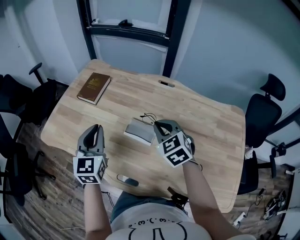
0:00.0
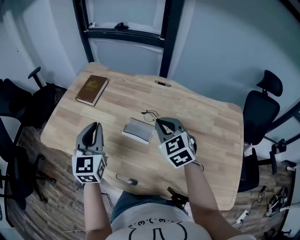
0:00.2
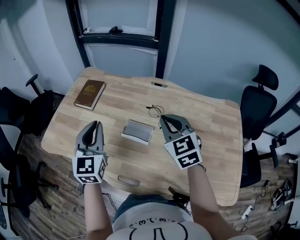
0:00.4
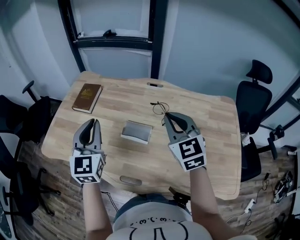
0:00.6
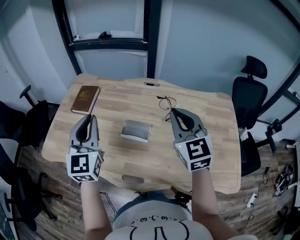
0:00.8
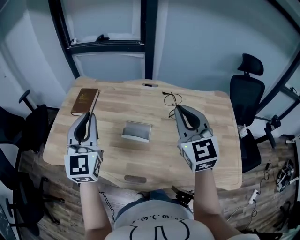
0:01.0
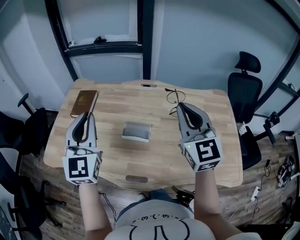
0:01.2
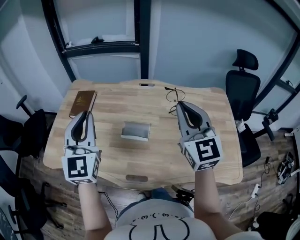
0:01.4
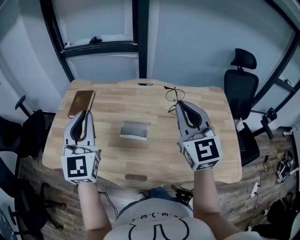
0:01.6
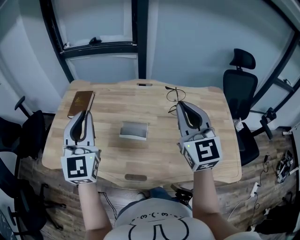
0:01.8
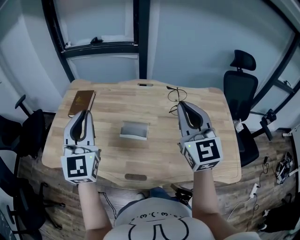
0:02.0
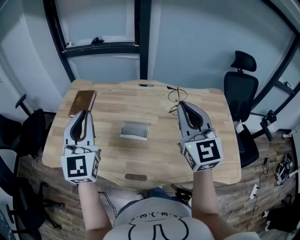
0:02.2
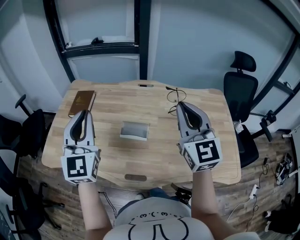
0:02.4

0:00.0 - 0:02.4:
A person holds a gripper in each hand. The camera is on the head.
0:00.0 - 0:01.2: The left gripper is displaced upward by approximately 15 cm, and turns by roughly 20 degrees. The right gripper moves upward and backward, roughly 20 cm, and points its fingers about 40 degrees further upward.
0:01.2 - 0:02.4: The grippers make only small movements.

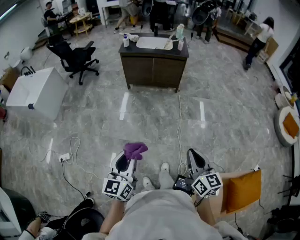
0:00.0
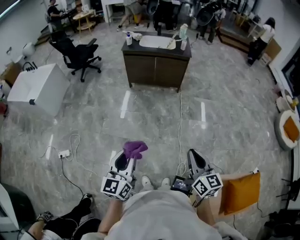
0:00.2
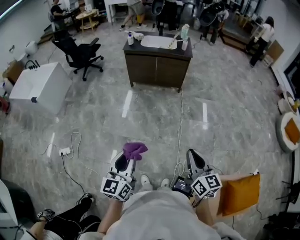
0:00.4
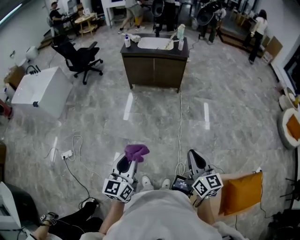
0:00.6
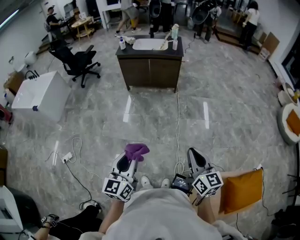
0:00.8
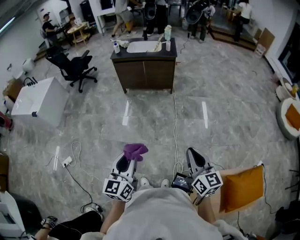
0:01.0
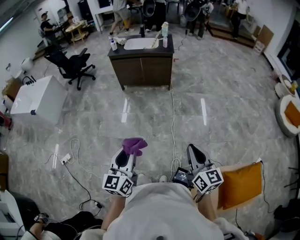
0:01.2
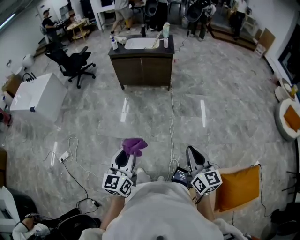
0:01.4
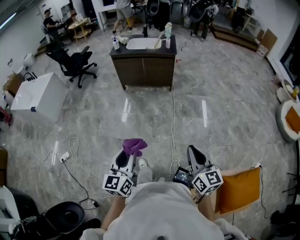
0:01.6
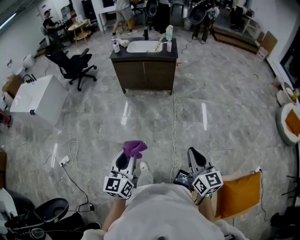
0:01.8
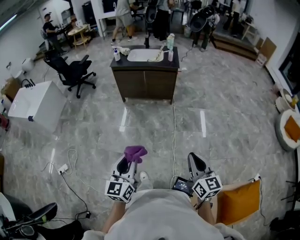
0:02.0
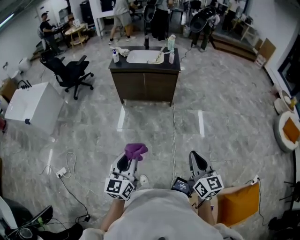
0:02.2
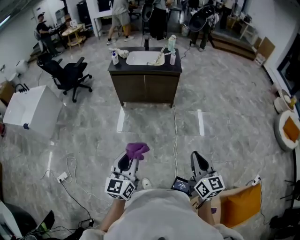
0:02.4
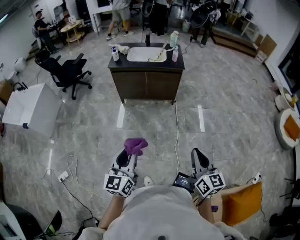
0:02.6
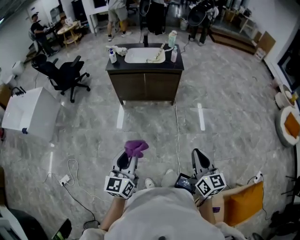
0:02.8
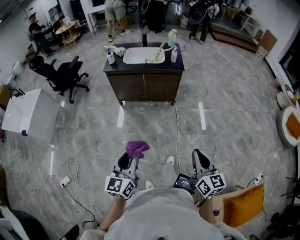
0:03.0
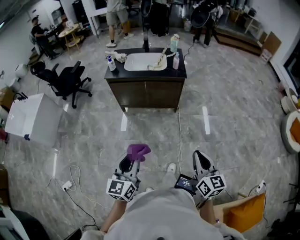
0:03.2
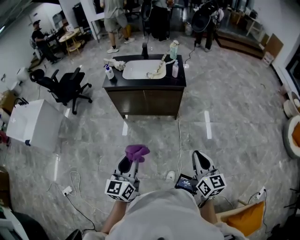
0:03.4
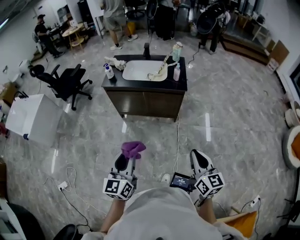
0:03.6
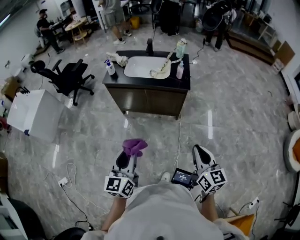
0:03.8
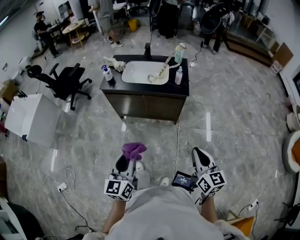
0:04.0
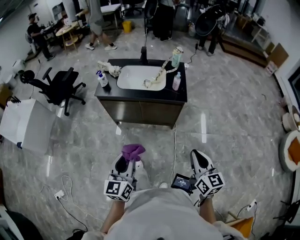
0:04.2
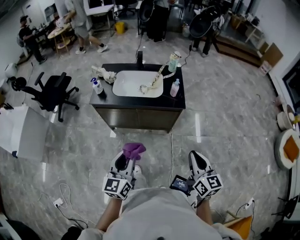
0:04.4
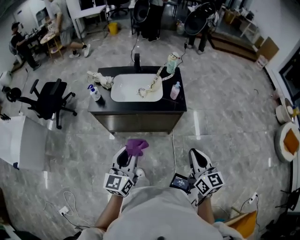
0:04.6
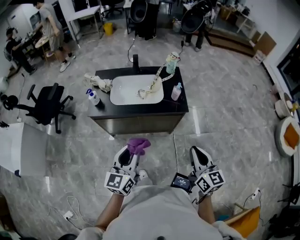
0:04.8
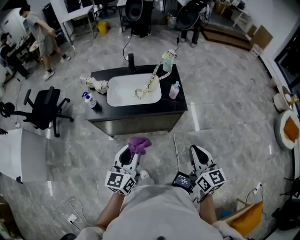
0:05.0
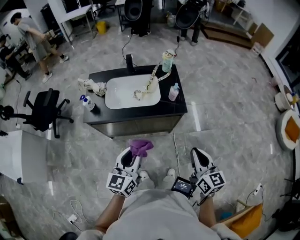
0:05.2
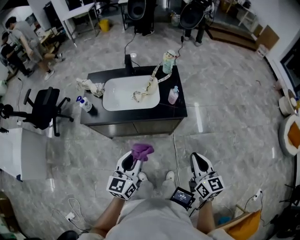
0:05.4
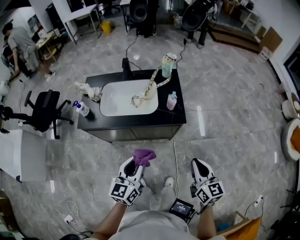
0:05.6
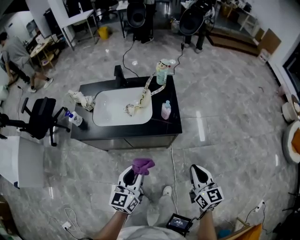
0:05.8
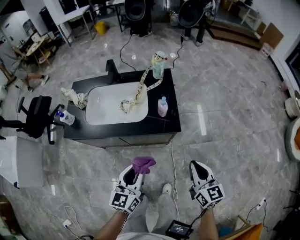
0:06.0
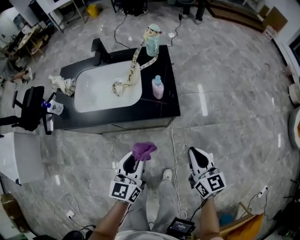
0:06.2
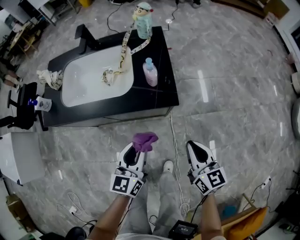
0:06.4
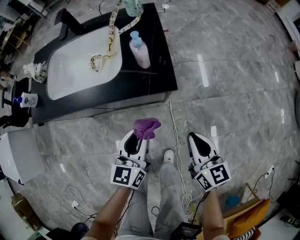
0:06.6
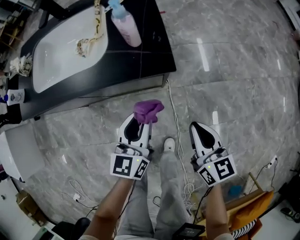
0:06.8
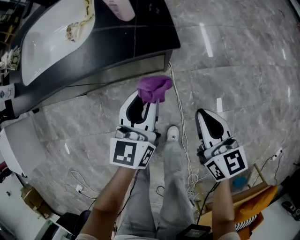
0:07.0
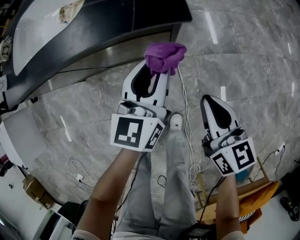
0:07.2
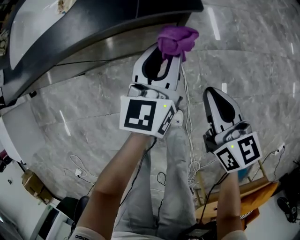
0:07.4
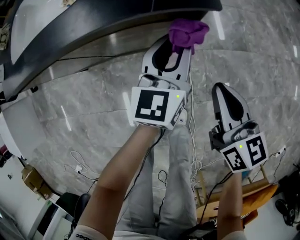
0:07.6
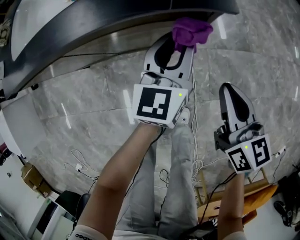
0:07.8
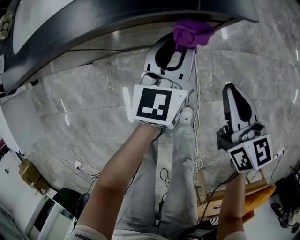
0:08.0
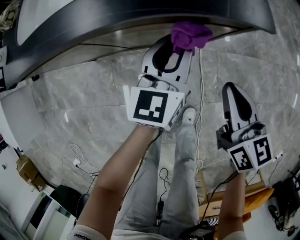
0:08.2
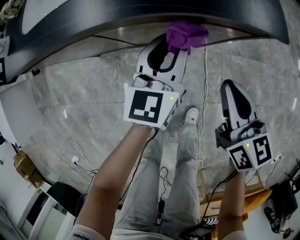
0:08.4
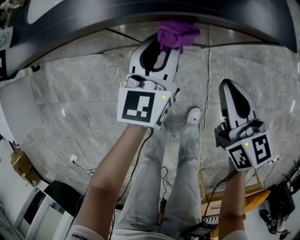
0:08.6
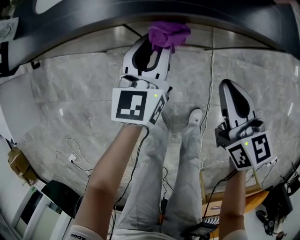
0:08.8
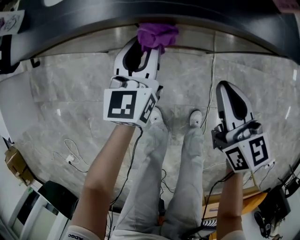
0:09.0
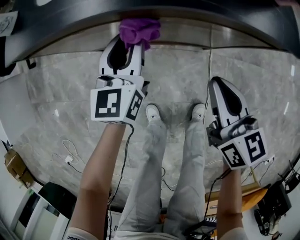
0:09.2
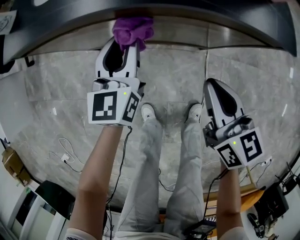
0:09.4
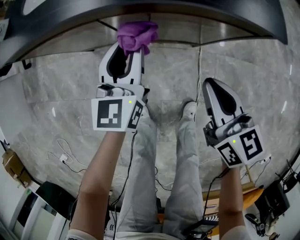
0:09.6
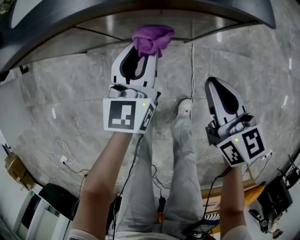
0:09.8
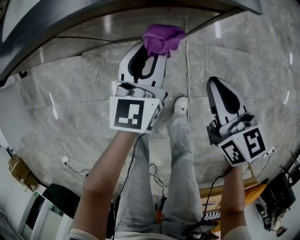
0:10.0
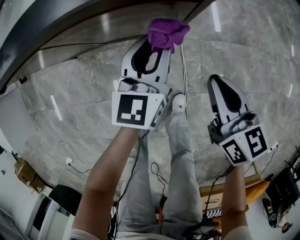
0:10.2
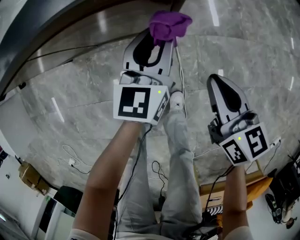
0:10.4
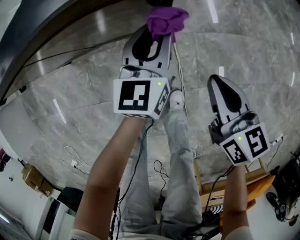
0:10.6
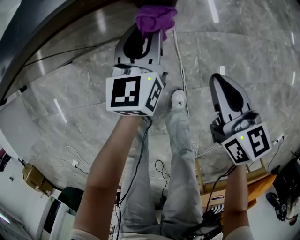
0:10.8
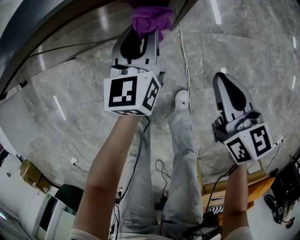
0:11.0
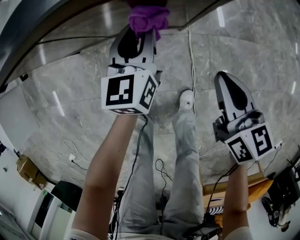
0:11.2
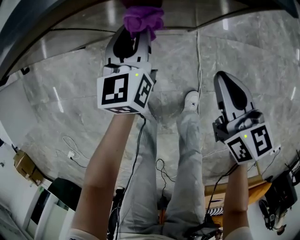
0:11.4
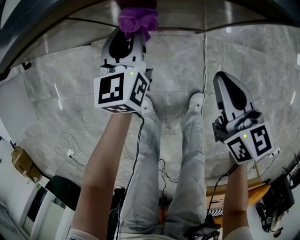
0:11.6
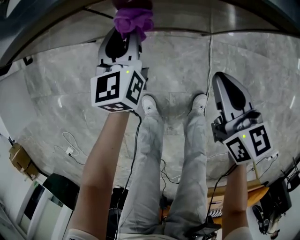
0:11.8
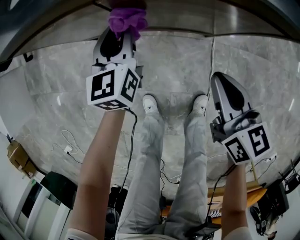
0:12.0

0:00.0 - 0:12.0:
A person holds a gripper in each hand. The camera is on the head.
0:00.0 - 0:01.6: The grippers both shift to the right by about 15 cm.
0:01.6 - 0:03.0: Both grippers move forward, about 30 cm.
0:03.0 - 0:04.4: Both grippers move forward, about 40 cm.
0:04.4 - 0:06.0: The left gripper shifts some 30 cm forward, downward and to the right. The right gripper moves forward and downward, about 25 cm.
0:06.0 - 0:07.6: The left gripper goes roughly 40 cm downward, to the right and forward. The right gripper is displaced downward by some 30 cm.
0:07.6 - 0:09.0: The grippers both shift to the left by about 25 cm.
0:09.0 - 0:10.4: Both grippers travel together to the right, approximately 30 cm.
0:10.4 - 0:12.0: The left gripper shifts roughly 35 cm to the left, and changes its angle by some 20 degrees, while the right gripper goes about 20 cm to the left.

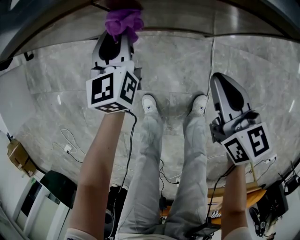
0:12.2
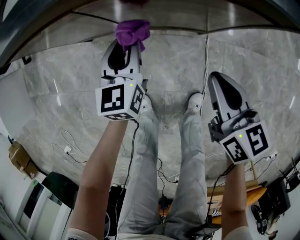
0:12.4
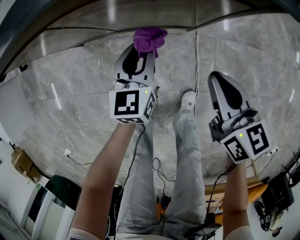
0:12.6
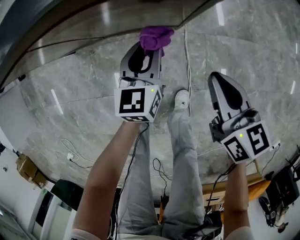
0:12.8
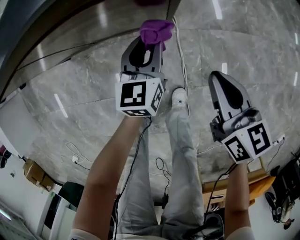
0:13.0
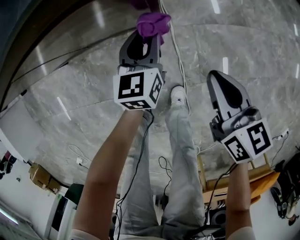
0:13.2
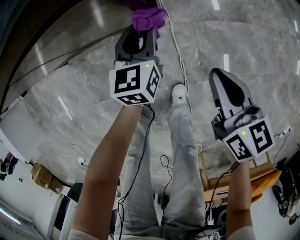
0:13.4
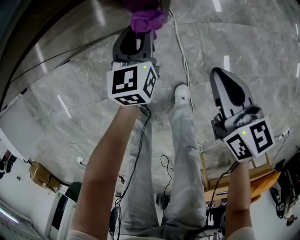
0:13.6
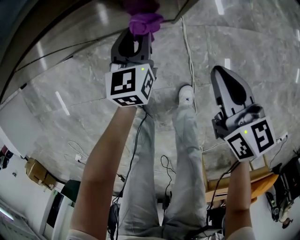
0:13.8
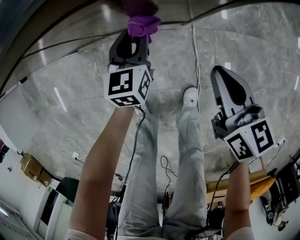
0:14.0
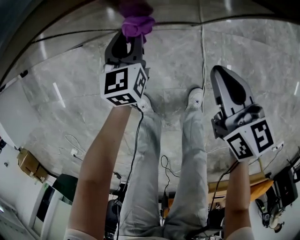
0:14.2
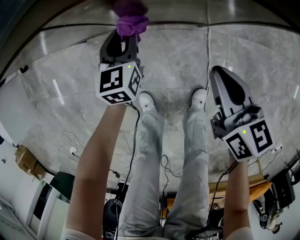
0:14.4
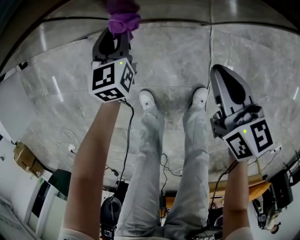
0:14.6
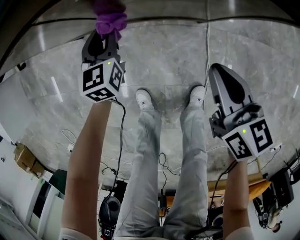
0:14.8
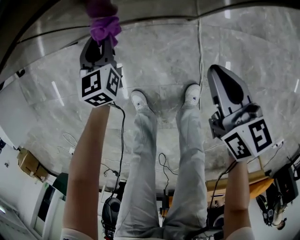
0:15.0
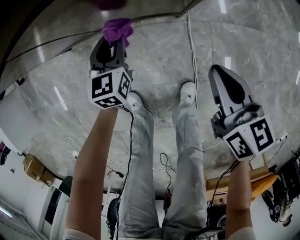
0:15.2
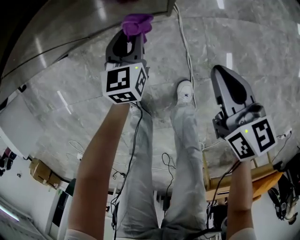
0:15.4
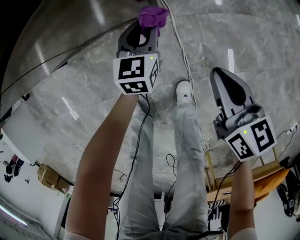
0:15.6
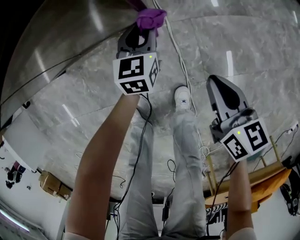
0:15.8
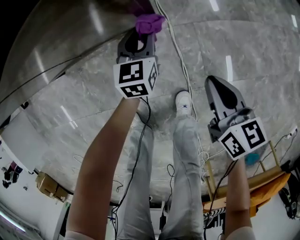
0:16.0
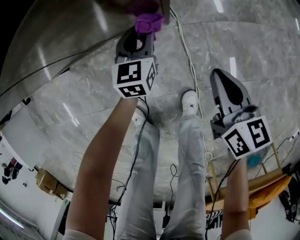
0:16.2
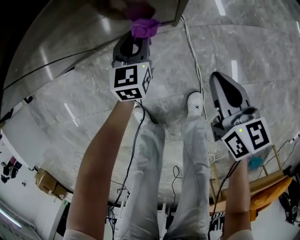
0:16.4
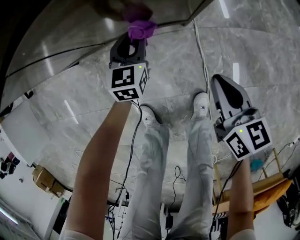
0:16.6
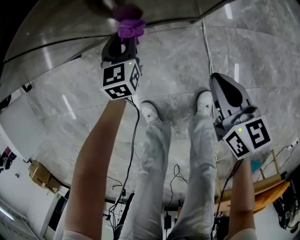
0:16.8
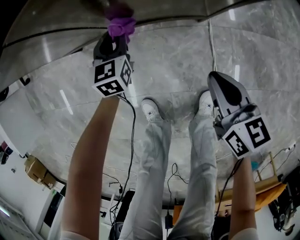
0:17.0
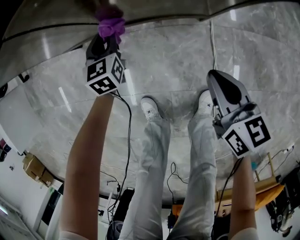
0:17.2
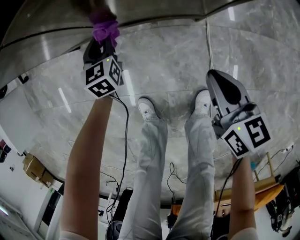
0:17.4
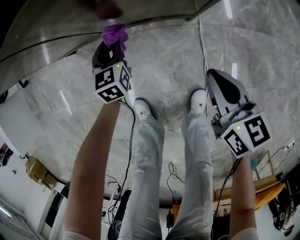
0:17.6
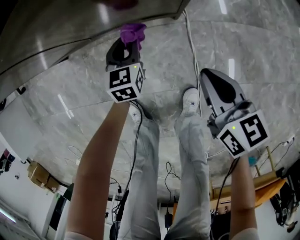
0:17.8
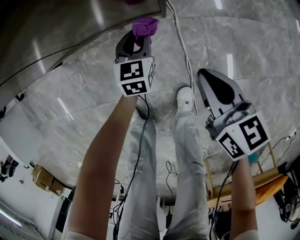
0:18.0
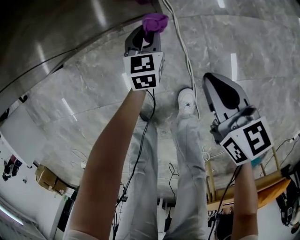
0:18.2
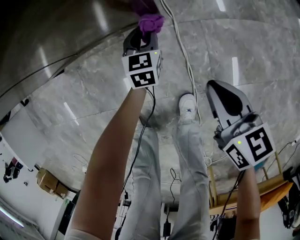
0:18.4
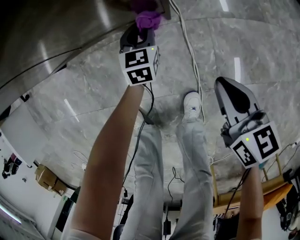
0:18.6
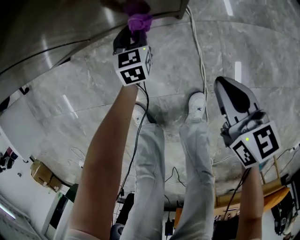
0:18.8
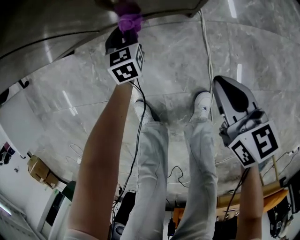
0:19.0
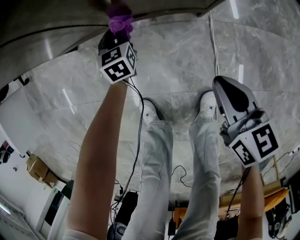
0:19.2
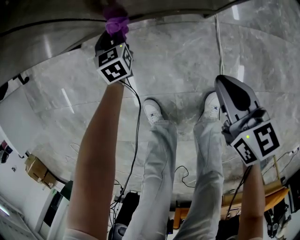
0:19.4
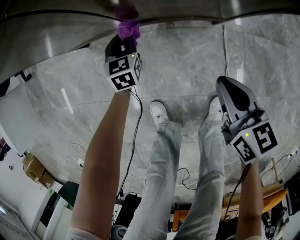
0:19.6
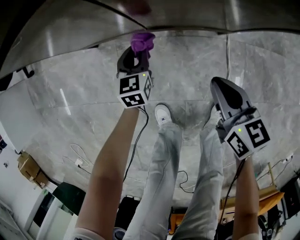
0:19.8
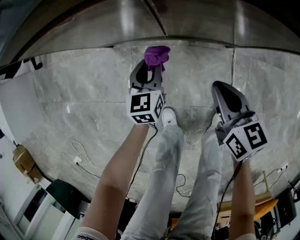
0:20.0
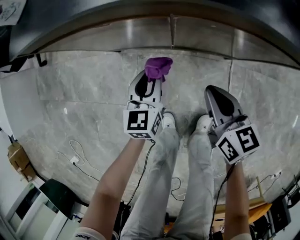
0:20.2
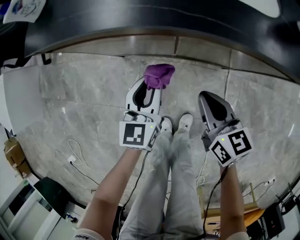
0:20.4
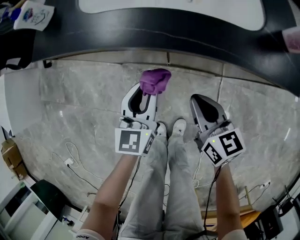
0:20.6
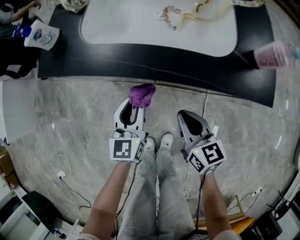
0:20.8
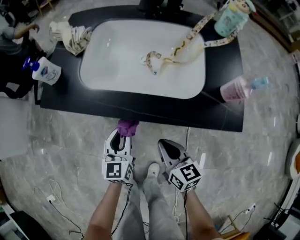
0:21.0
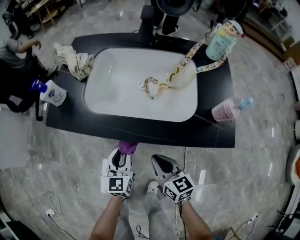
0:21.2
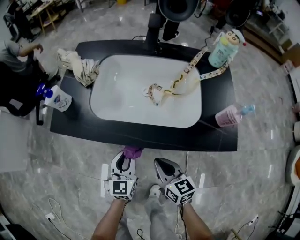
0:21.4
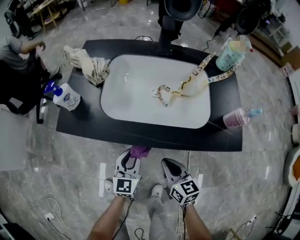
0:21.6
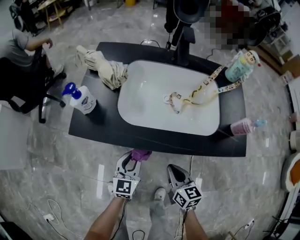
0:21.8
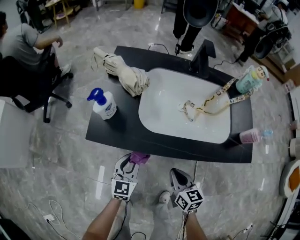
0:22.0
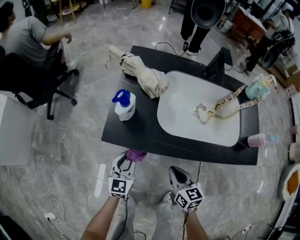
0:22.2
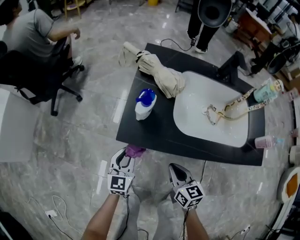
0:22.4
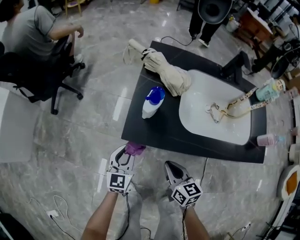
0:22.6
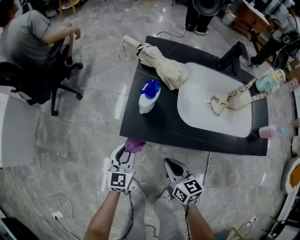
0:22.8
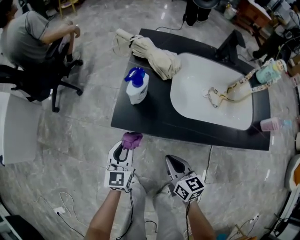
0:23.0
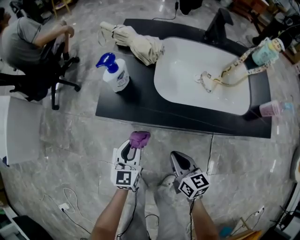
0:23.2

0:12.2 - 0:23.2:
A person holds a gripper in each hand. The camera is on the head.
0:12.2 - 0:13.8: The left gripper is displaced to the right and downward by approximately 25 cm. The right gripper moves to the right, some 15 cm.
0:13.8 - 0:15.4: The left gripper is displaced downward by some 5 cm, and moves some 20 cm to the left and comes back, while the right gripper moves roughly 15 cm to the left and comes back.
0:15.4 - 0:17.0: The right gripper goes some 15 cm to the left and downward; the left gripper travels to the left by roughly 20 cm.
0:17.0 - 0:18.4: The right gripper travels to the right by some 15 cm, while the left gripper goes roughly 25 cm to the right.
0:18.4 - 0:20.0: The left gripper shifts about 40 cm to the left and upward, while the right gripper moves to the left and forward, some 30 cm.
0:20.0 - 0:21.6: The left gripper is displaced upward by about 25 cm; the right gripper heads upward and forward, covering roughly 20 cm.
0:21.6 - 0:23.2: Both grippers travel together to the left, roughly 20 cm.
